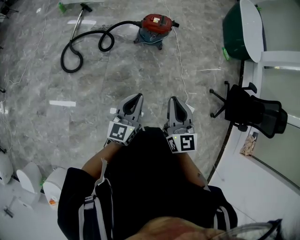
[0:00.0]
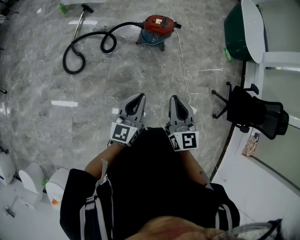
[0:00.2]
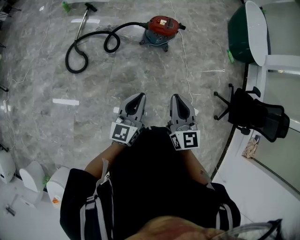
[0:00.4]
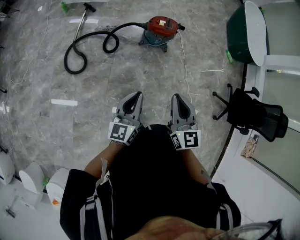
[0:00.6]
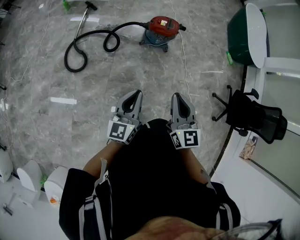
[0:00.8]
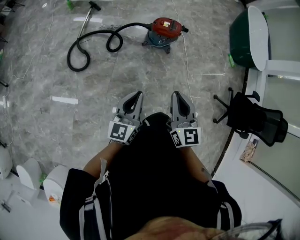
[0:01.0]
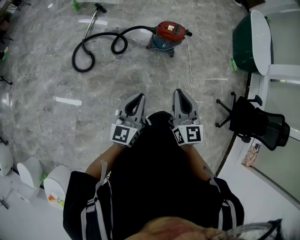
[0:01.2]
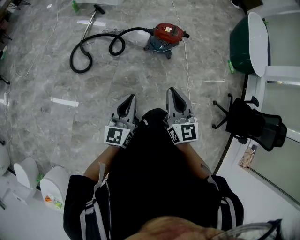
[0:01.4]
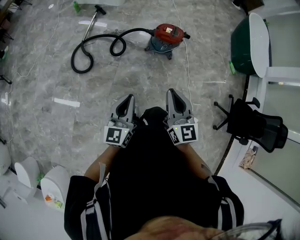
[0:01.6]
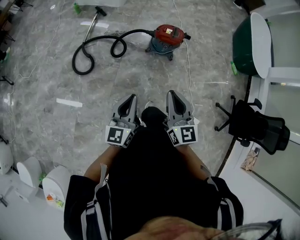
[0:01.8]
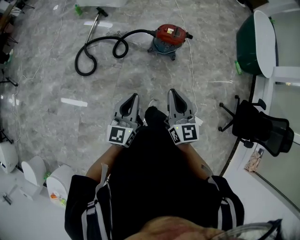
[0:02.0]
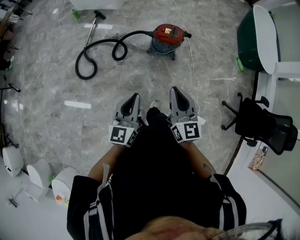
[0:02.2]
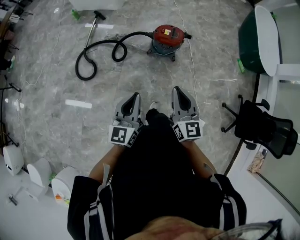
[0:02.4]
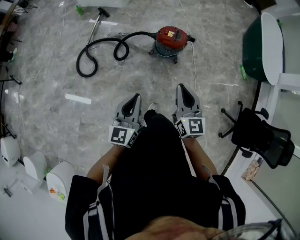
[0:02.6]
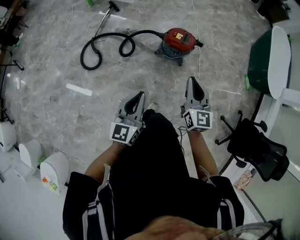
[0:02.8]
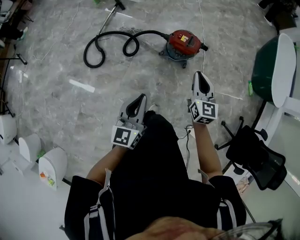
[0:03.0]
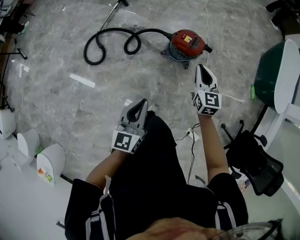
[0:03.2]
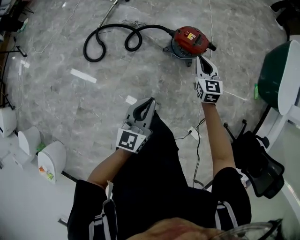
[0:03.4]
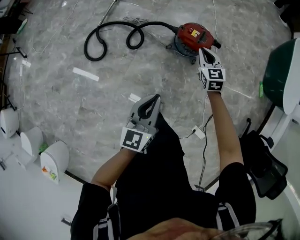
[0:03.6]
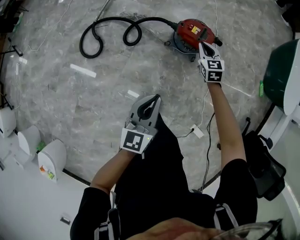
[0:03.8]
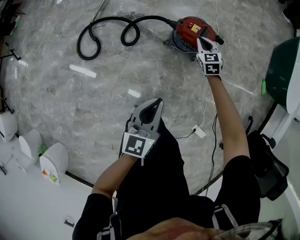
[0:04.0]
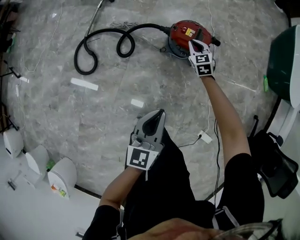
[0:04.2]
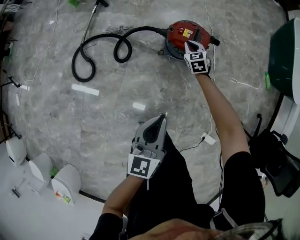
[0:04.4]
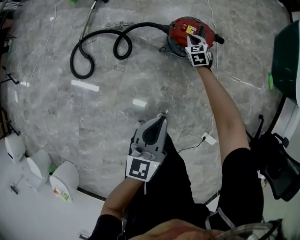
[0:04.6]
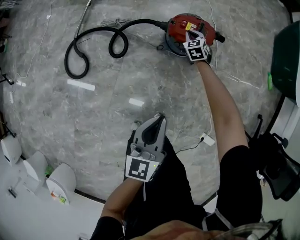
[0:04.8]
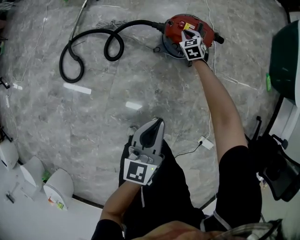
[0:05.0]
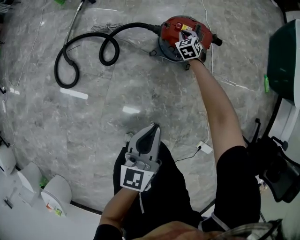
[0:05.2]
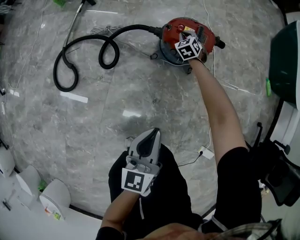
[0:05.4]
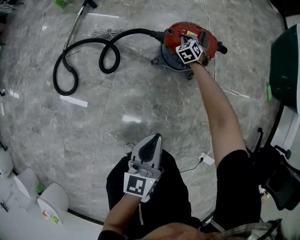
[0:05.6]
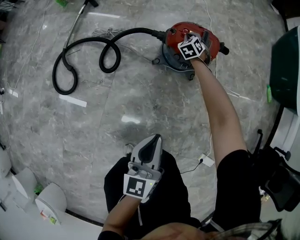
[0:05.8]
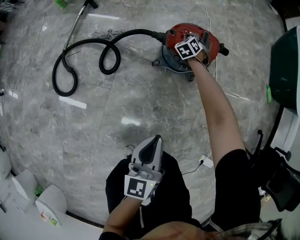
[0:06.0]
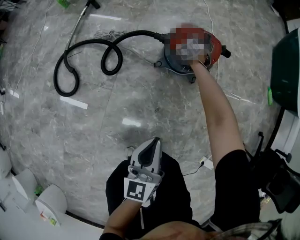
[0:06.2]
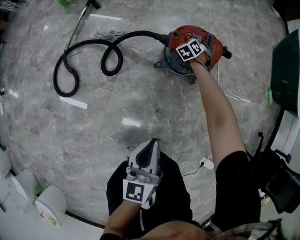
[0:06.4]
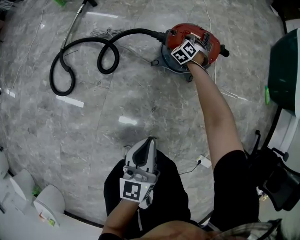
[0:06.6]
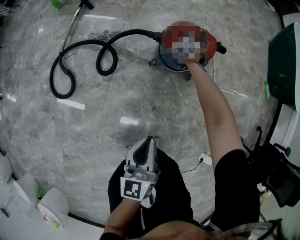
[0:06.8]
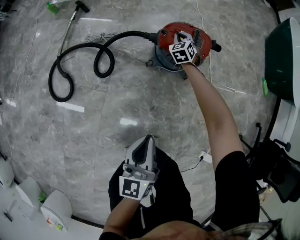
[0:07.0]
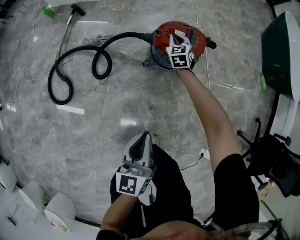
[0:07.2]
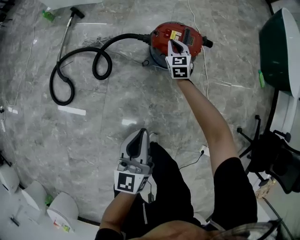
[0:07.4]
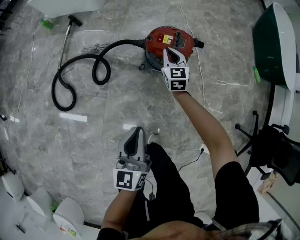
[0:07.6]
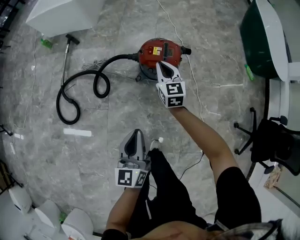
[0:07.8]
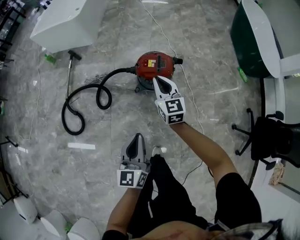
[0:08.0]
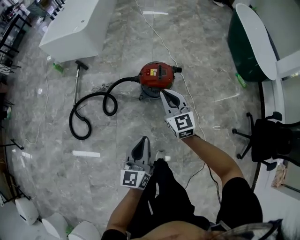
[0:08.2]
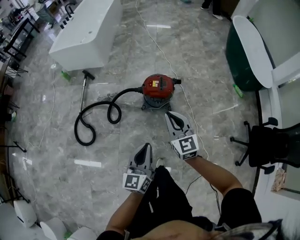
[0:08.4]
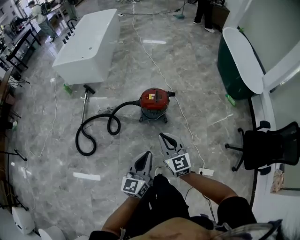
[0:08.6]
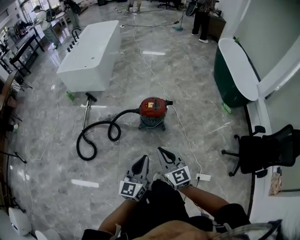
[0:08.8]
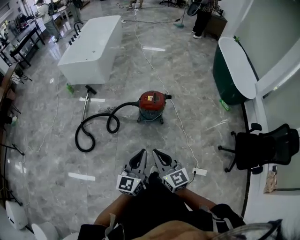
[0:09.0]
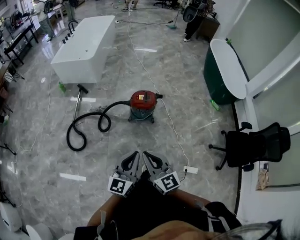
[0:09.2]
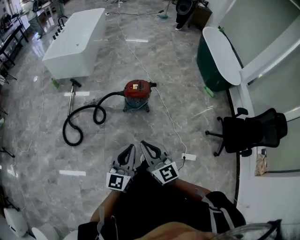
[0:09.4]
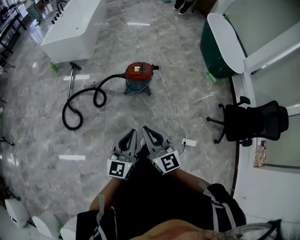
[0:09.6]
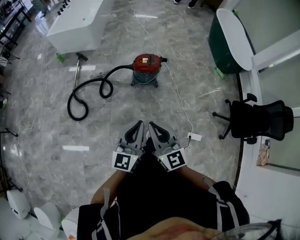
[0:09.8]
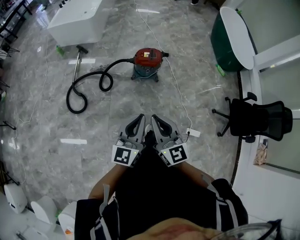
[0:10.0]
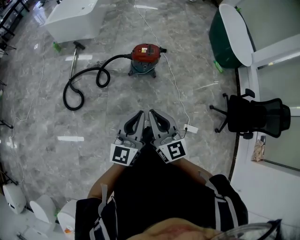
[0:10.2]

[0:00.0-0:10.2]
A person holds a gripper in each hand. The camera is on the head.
0:00.0 to 0:01.4: The right gripper moves to the left and forward, about 10 cm, while the left gripper moves to the left, about 10 cm.
0:01.4 to 0:03.0: The right gripper goes approximately 30 cm forward and to the right. Meanwhile the left gripper travels forward and to the right by roughly 20 cm.
0:03.0 to 0:04.4: The right gripper is displaced downward and forward by some 50 cm, and swivels some 30 degrees. The left gripper goes approximately 20 cm downward, forward and to the right.
0:04.4 to 0:05.8: The right gripper shifts some 25 cm downward and forward, and turns by approximately 30 degrees, while the left gripper travels downward by approximately 20 cm.
0:05.8 to 0:07.2: The right gripper travels upward by about 5 cm, and turns by some 30 degrees.
0:07.2 to 0:08.8: The right gripper goes about 80 cm upward and backward, and rotates roughly 30 degrees, while the left gripper travels upward and backward by some 40 cm, and turns by some 20 degrees.
0:08.8 to 0:10.2: The left gripper is displaced backward and upward by approximately 10 cm. Meanwhile the right gripper is displaced backward, upward and to the left by approximately 15 cm.

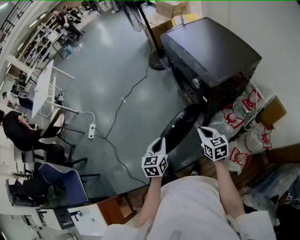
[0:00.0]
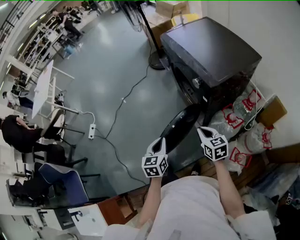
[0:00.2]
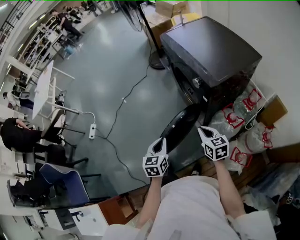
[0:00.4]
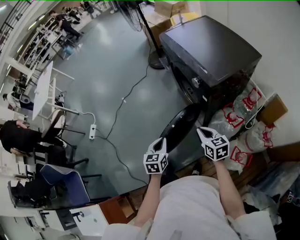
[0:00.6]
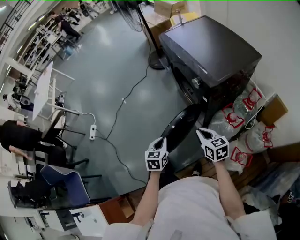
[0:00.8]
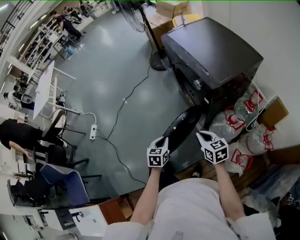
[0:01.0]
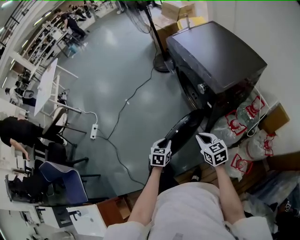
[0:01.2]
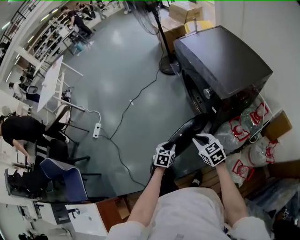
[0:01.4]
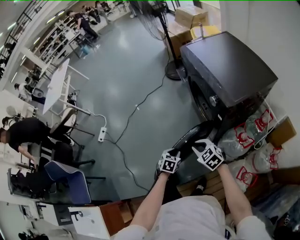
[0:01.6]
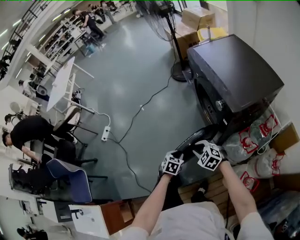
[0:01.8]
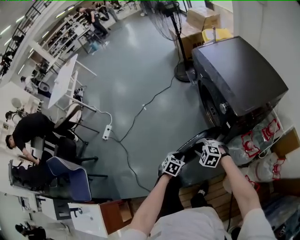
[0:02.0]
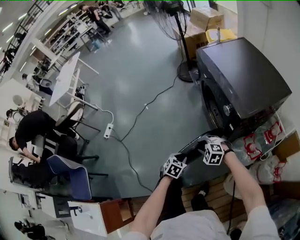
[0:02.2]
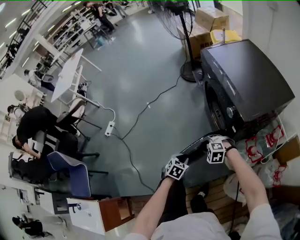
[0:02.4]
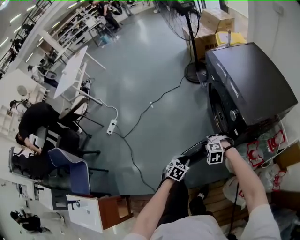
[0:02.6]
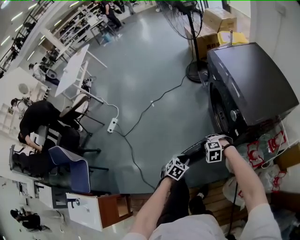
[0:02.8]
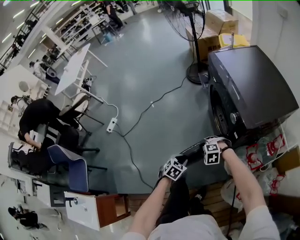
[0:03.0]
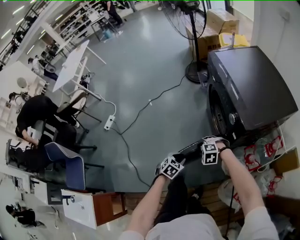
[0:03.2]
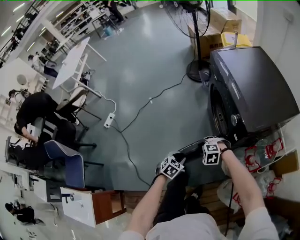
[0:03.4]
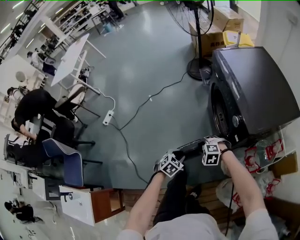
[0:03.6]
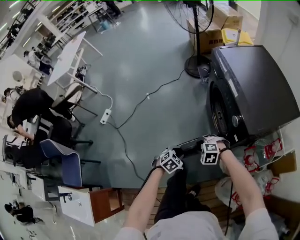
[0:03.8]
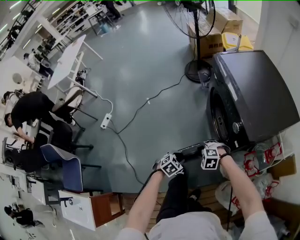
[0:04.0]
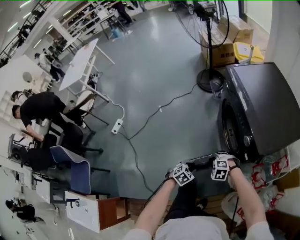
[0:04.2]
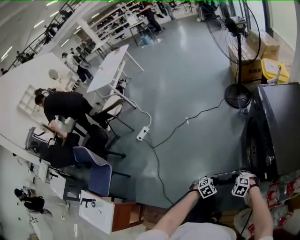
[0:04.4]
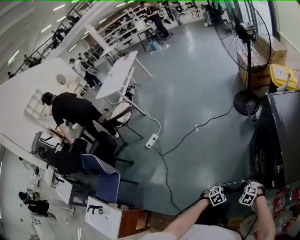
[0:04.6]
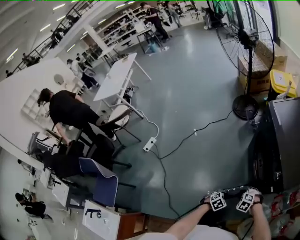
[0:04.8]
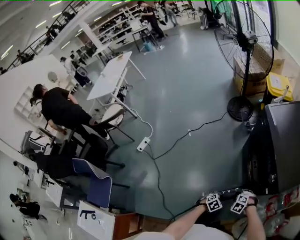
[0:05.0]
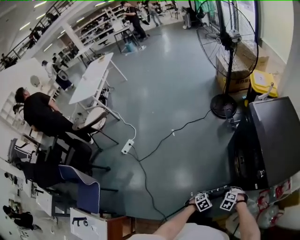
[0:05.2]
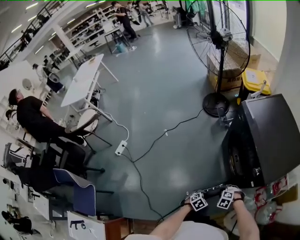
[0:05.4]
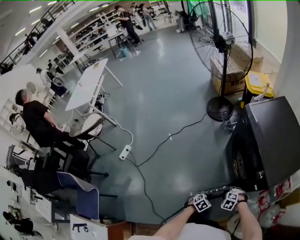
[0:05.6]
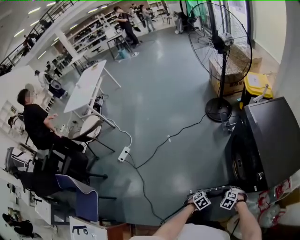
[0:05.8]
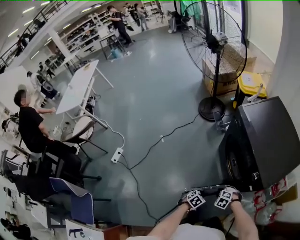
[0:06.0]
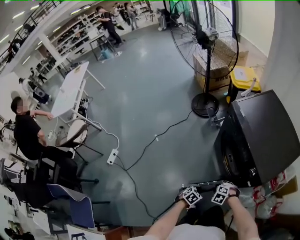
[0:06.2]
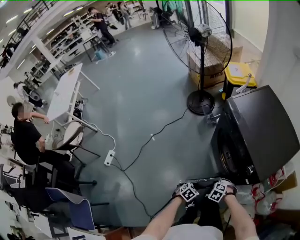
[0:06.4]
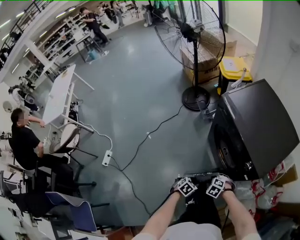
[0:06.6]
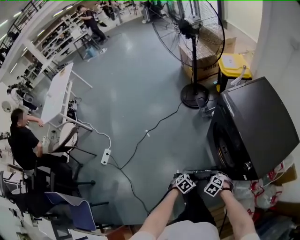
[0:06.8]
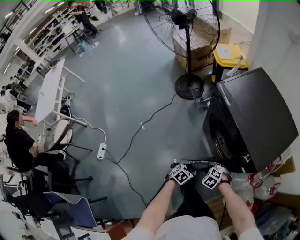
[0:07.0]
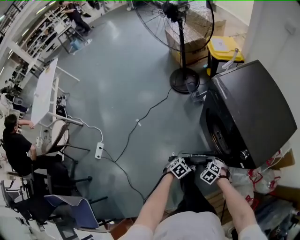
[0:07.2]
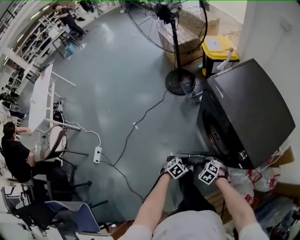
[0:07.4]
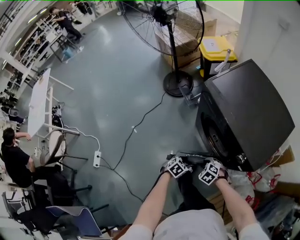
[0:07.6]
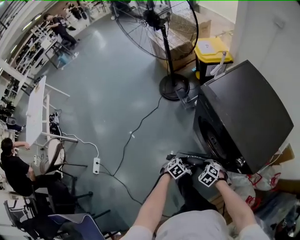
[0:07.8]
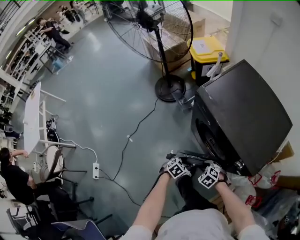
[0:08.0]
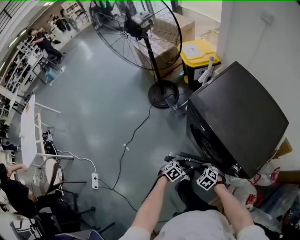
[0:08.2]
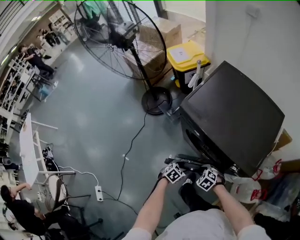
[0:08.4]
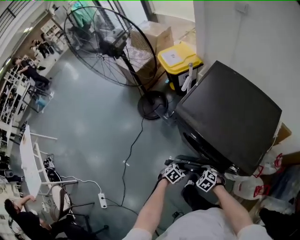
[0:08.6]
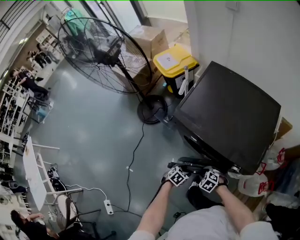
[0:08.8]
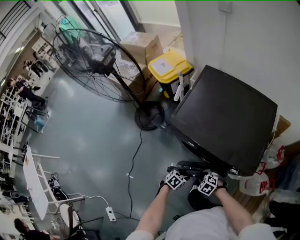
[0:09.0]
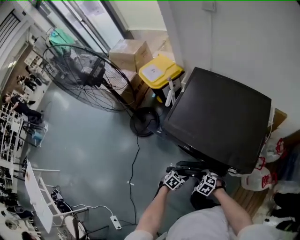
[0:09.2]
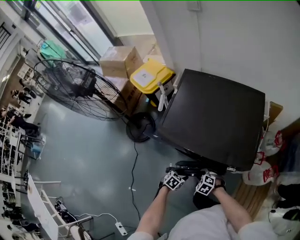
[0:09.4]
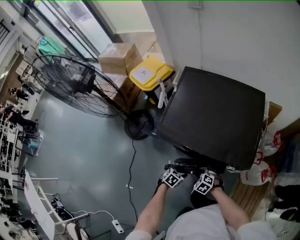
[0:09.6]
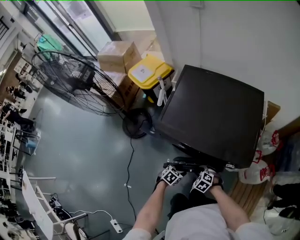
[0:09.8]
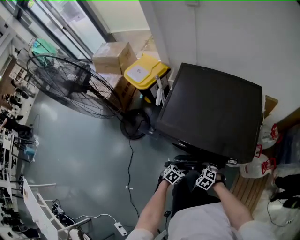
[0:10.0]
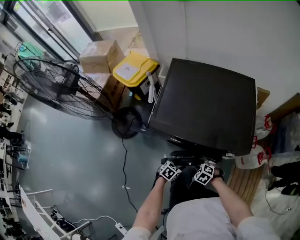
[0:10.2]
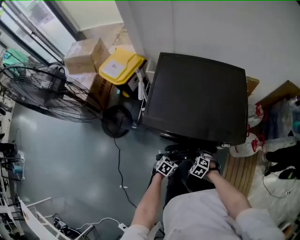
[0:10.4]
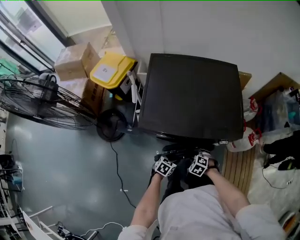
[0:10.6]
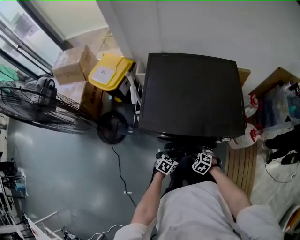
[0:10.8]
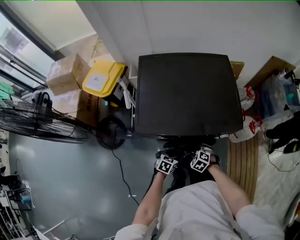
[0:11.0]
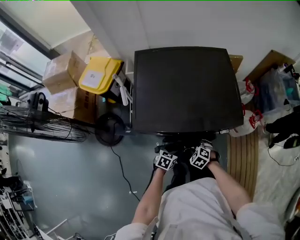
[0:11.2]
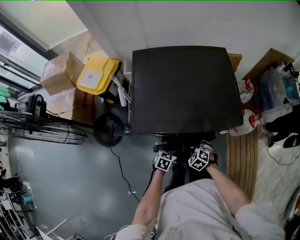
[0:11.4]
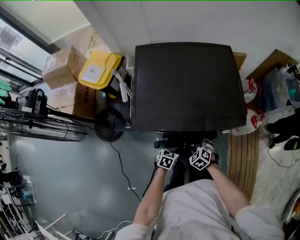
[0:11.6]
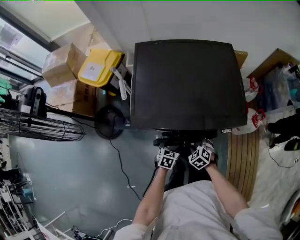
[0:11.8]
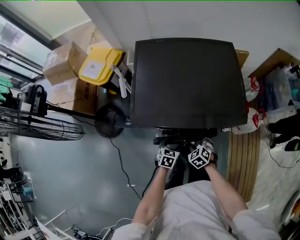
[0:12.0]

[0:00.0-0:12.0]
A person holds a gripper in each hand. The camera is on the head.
0:00.0 to 0:01.6: The right gripper heads to the left, covering about 10 cm, and rotates about 40 degrees. The left gripper travels downward by some 15 cm, and swivels about 30 degrees.
0:01.6 to 0:03.0: The right gripper heads downward and forward, covering about 10 cm, twists approximately 50 degrees counterclockwise, seen from behind, and opens.
0:03.0 to 0:04.4: The left gripper ends up roughly 5 cm from where it was.
0:04.4 to 0:06.0: The left gripper ends up roughly 5 cm from where it was.
0:06.0 to 0:07.6: The left gripper ends up about 15 cm from where it was. The right gripper changes place by approximately 10 cm, and turns by some 30 degrees.
0:07.6 to 0:09.0: The right gripper ends up approximately 10 cm from where it was, and turns by some 20 degrees; the left gripper shifts by some 15 cm, and swivels some 20 degrees.
0:09.0 to 0:10.4: The right gripper rotates some 20 degrees, while the left gripper shifts by roughly 5 cm.
0:10.4 to 0:12.0: The left gripper ends up about 5 cm from where it was. The right gripper rotates roughly 30 degrees.

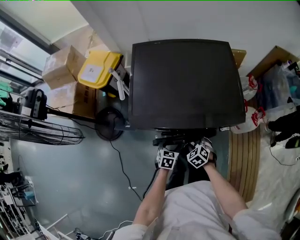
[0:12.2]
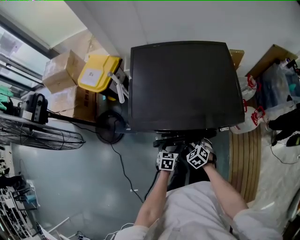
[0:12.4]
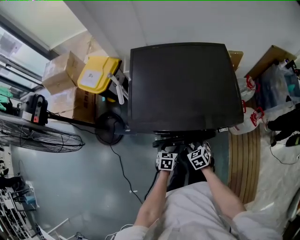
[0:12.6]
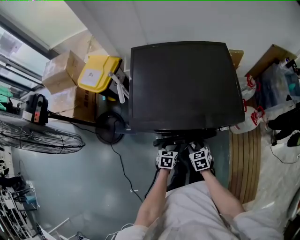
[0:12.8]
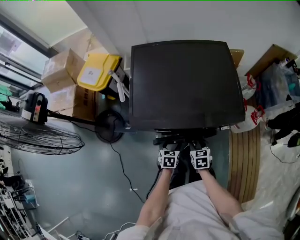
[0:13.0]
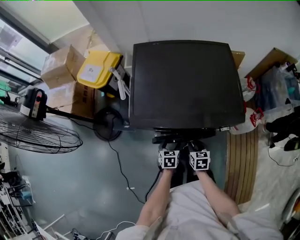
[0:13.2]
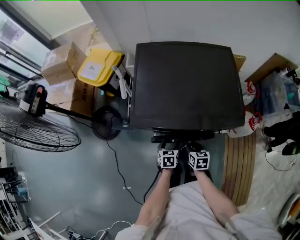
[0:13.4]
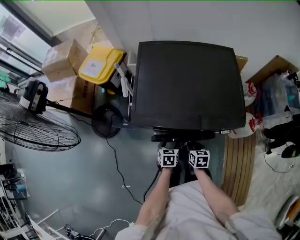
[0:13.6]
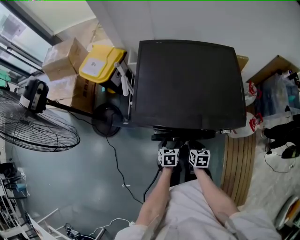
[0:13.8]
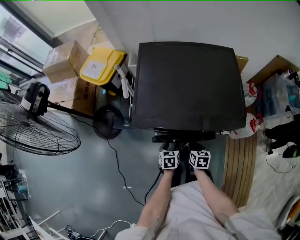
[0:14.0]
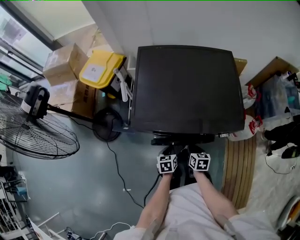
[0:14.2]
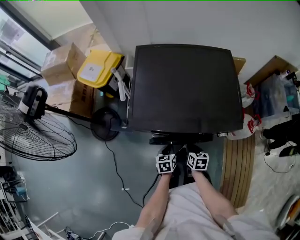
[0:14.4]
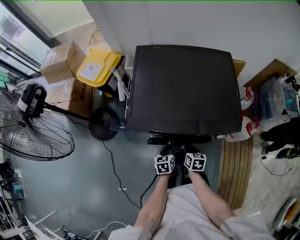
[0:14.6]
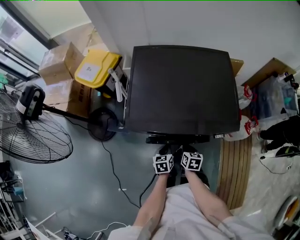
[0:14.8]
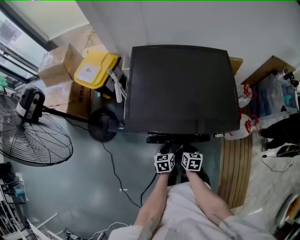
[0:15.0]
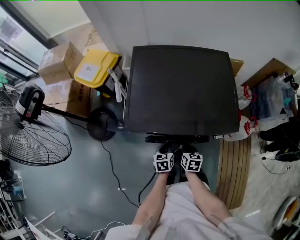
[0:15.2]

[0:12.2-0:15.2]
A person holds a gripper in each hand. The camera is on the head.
0:12.2 to 0:13.8: The right gripper twists some 50 degrees clockwise, seen from behind, and closes its fingers.
0:13.8 to 0:15.2: The left gripper closes up.
